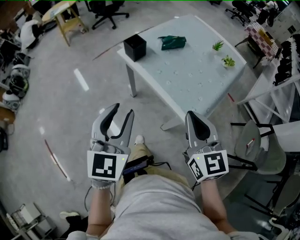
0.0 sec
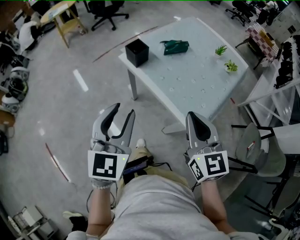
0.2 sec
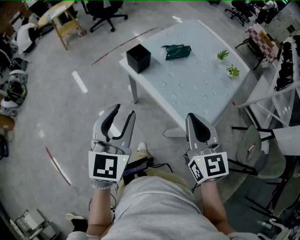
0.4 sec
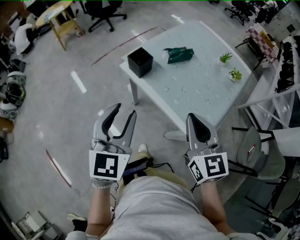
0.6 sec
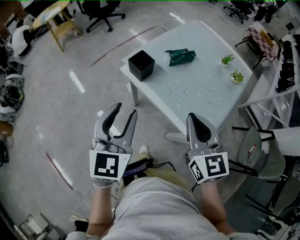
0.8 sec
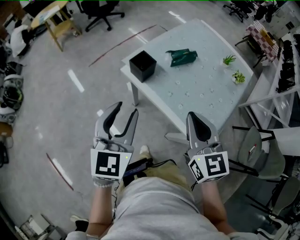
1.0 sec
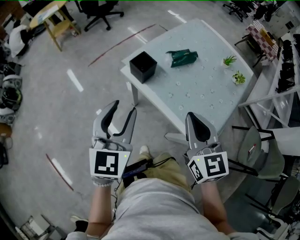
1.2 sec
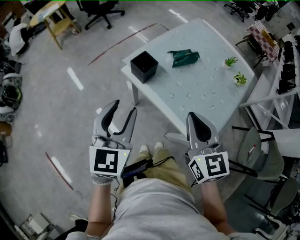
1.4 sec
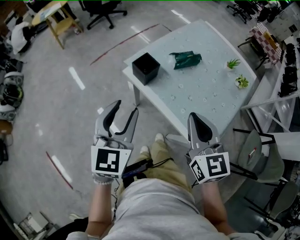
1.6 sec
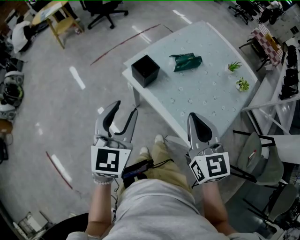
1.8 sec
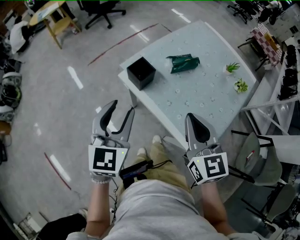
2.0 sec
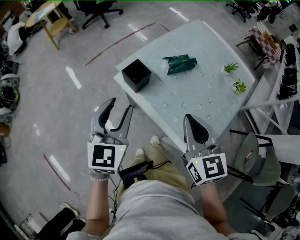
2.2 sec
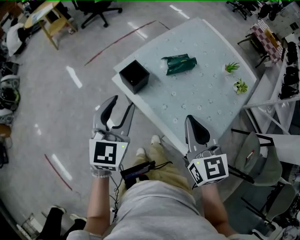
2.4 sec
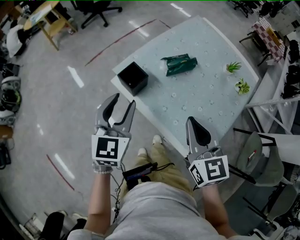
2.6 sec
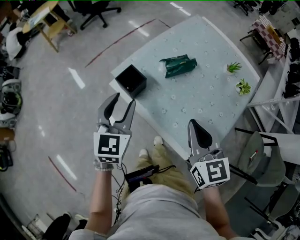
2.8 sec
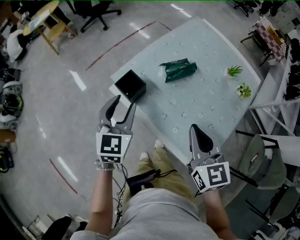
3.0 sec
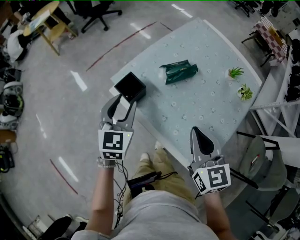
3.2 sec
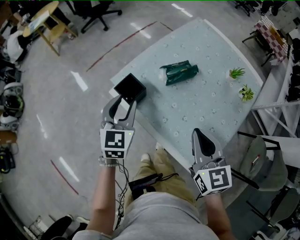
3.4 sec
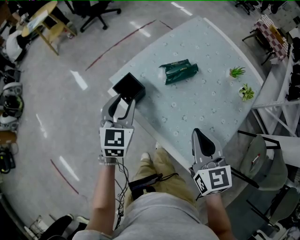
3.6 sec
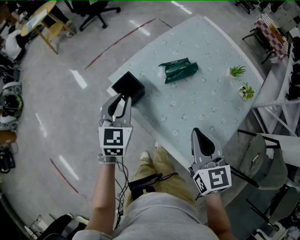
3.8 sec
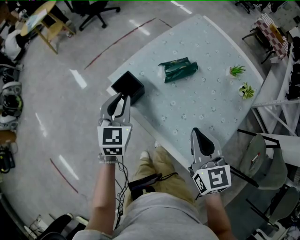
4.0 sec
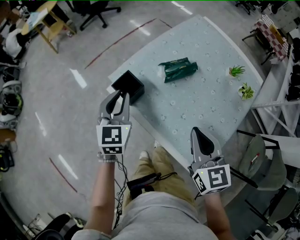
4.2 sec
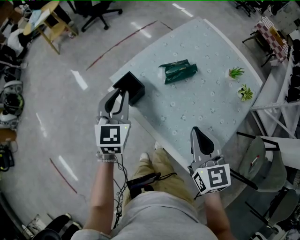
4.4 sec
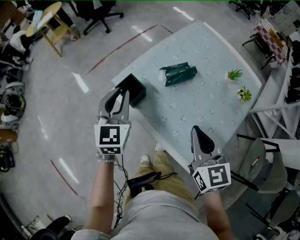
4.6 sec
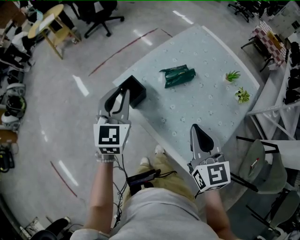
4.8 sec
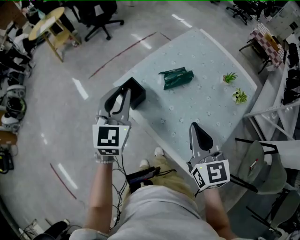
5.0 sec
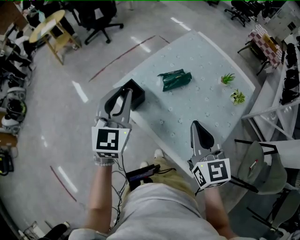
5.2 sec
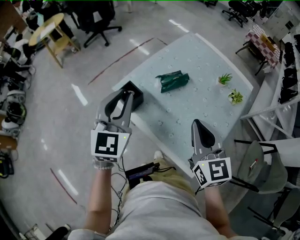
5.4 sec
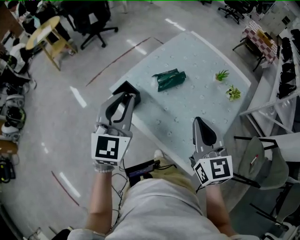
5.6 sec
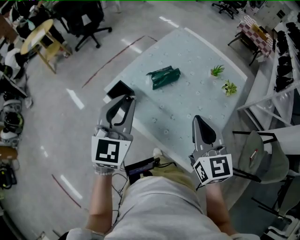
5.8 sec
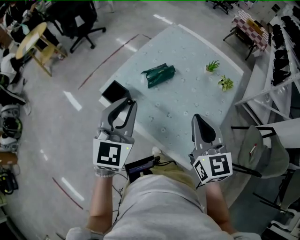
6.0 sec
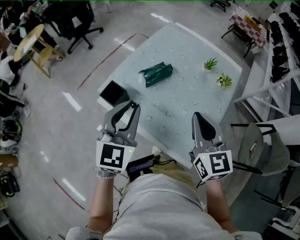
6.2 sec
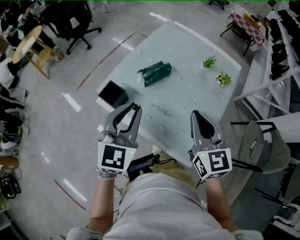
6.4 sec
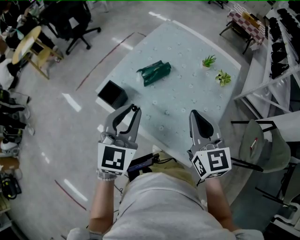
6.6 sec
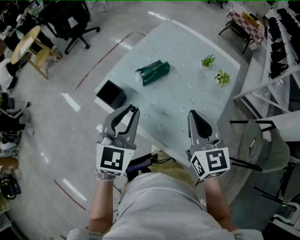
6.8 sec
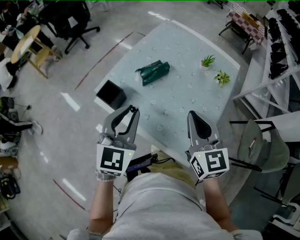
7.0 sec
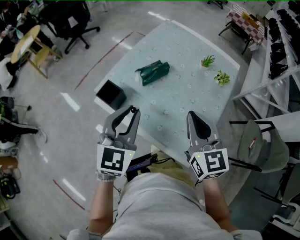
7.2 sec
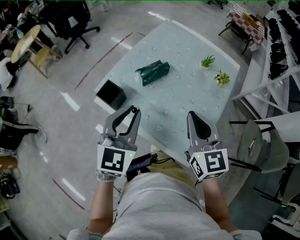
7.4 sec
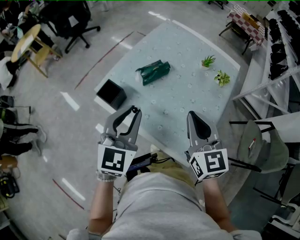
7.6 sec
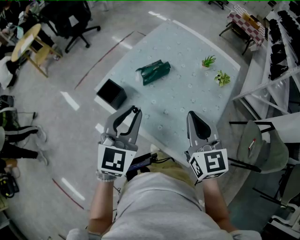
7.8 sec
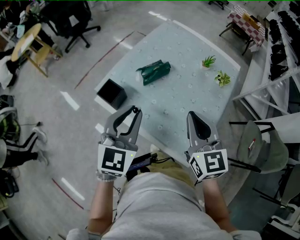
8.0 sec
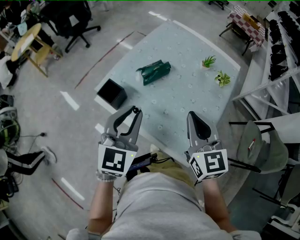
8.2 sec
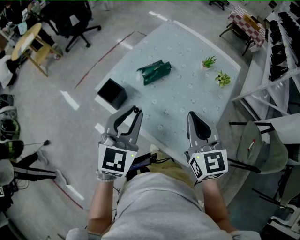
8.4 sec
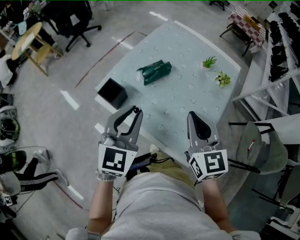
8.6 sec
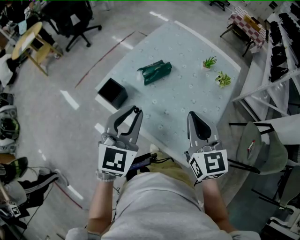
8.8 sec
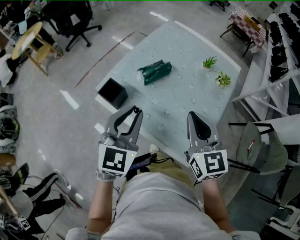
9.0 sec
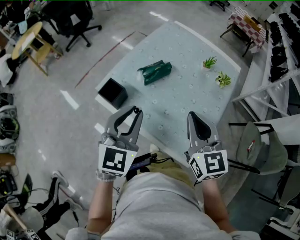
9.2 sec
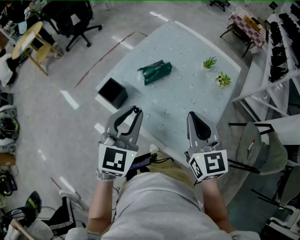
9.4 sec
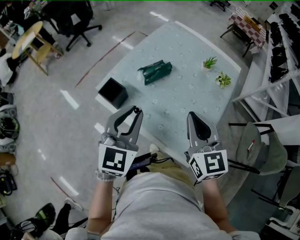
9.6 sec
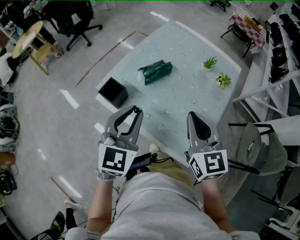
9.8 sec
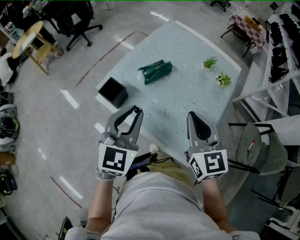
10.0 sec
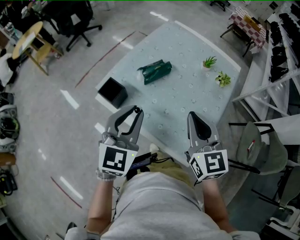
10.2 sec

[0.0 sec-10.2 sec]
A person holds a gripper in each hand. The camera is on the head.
0.0 sec to 1.4 sec: The two grippers go some 20 cm forward and to the left.
1.4 sec to 3.0 sec: The right gripper goes approximately 10 cm forward and to the right; the left gripper moves forward and downward, some 15 cm.
3.0 sec to 4.4 sec: The left gripper closes.
4.4 sec to 5.8 sec: The left gripper goes some 15 cm upward, to the right and backward; the right gripper travels upward by approximately 5 cm.
5.8 sec to 7.2 sec: The left gripper travels to the right by some 5 cm.
7.2 sec to 10.2 sec: Both grippers stay about where they are.

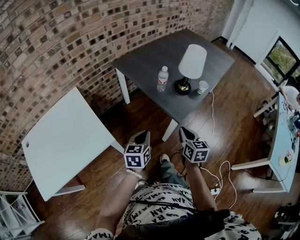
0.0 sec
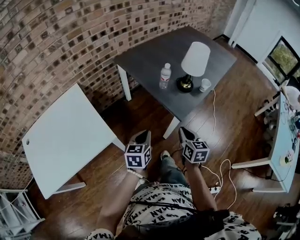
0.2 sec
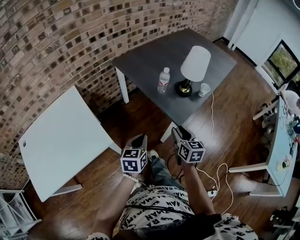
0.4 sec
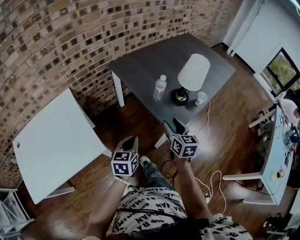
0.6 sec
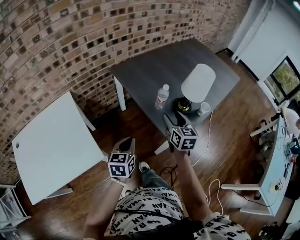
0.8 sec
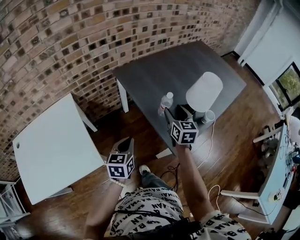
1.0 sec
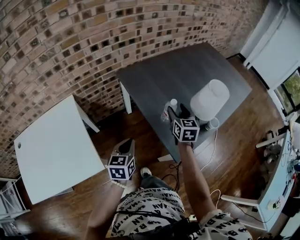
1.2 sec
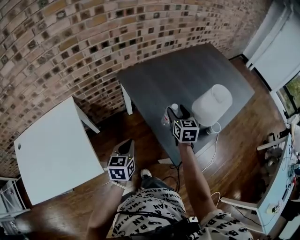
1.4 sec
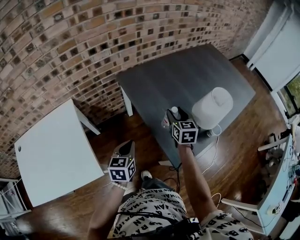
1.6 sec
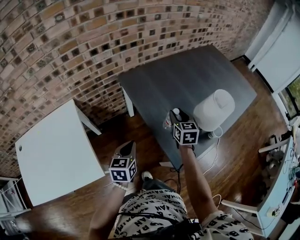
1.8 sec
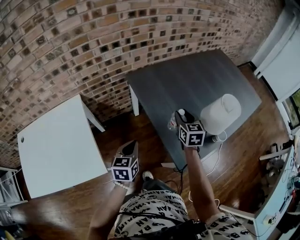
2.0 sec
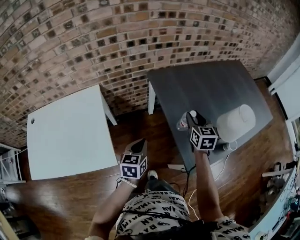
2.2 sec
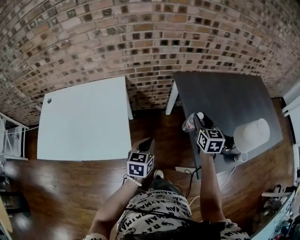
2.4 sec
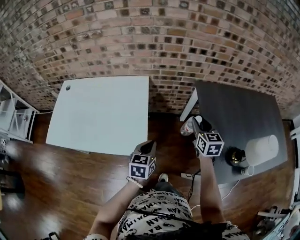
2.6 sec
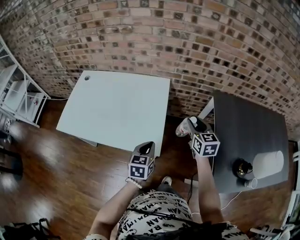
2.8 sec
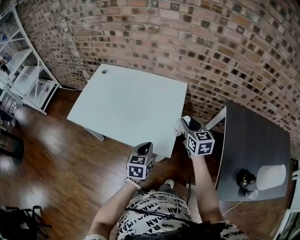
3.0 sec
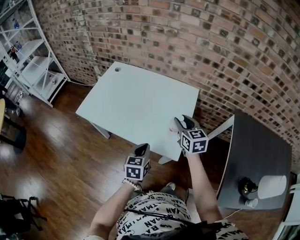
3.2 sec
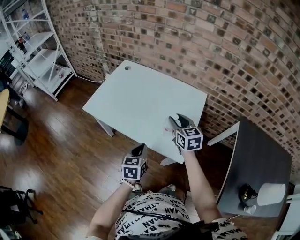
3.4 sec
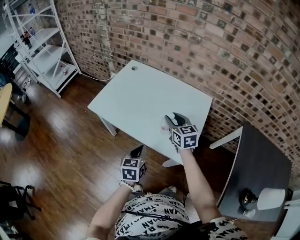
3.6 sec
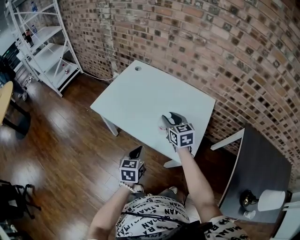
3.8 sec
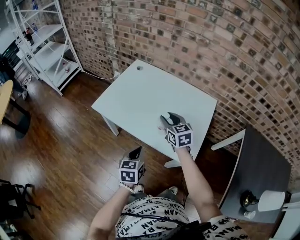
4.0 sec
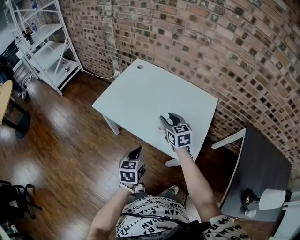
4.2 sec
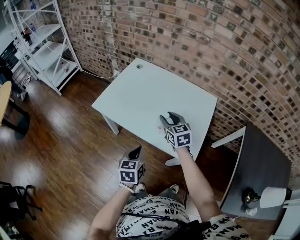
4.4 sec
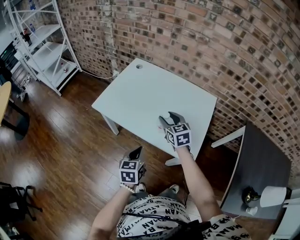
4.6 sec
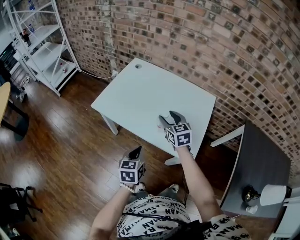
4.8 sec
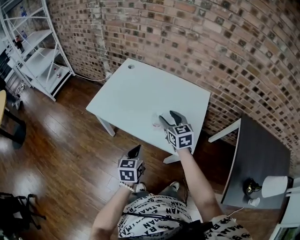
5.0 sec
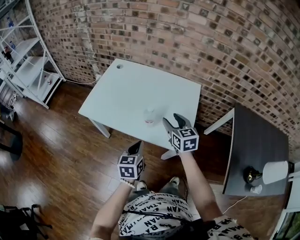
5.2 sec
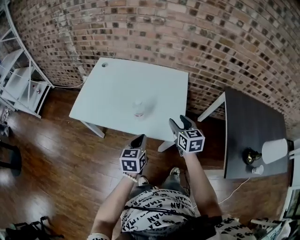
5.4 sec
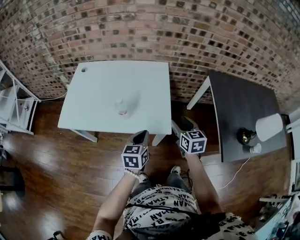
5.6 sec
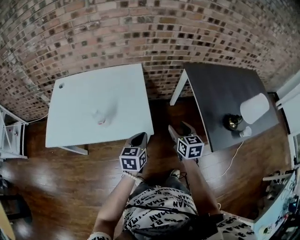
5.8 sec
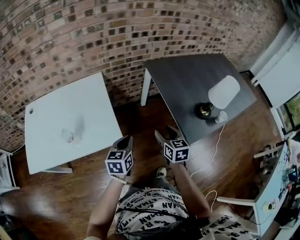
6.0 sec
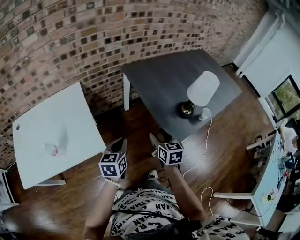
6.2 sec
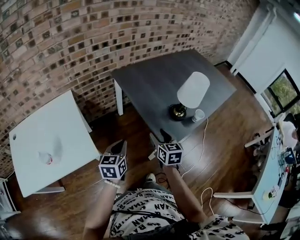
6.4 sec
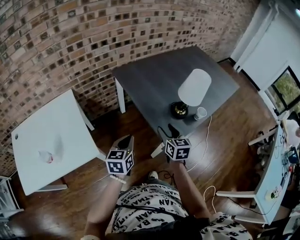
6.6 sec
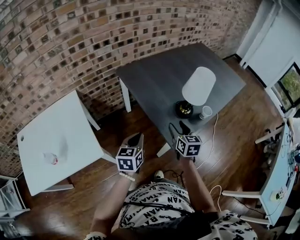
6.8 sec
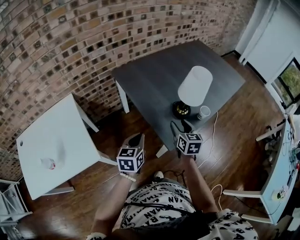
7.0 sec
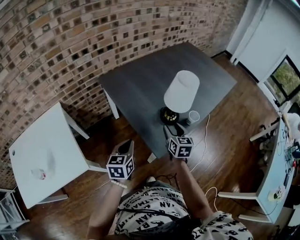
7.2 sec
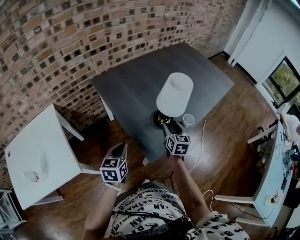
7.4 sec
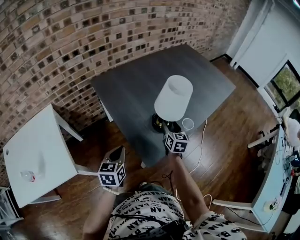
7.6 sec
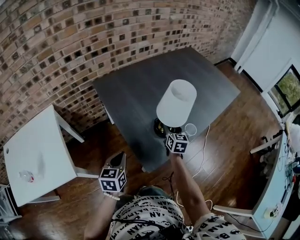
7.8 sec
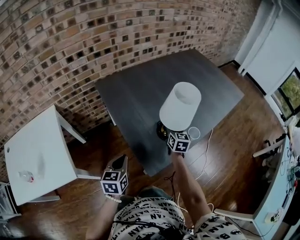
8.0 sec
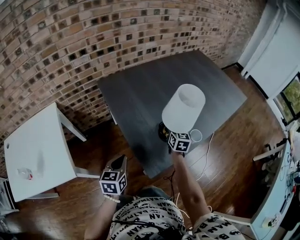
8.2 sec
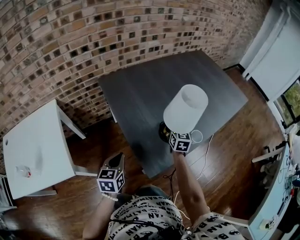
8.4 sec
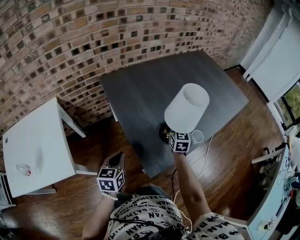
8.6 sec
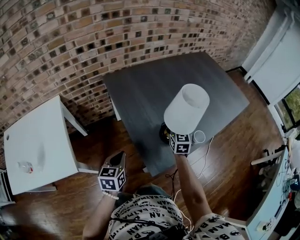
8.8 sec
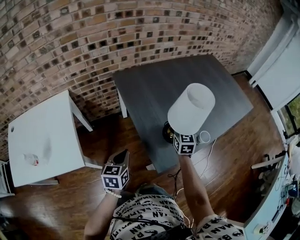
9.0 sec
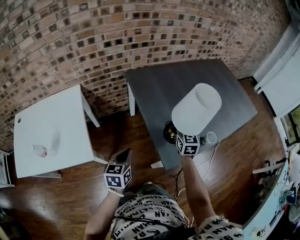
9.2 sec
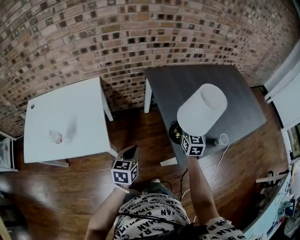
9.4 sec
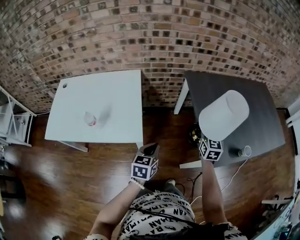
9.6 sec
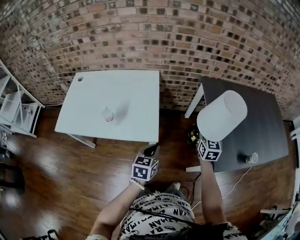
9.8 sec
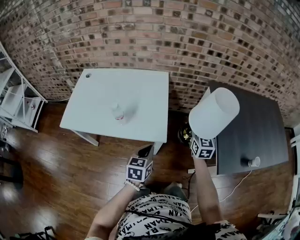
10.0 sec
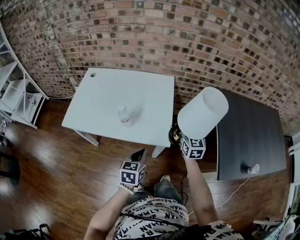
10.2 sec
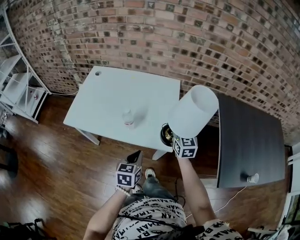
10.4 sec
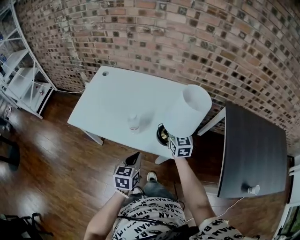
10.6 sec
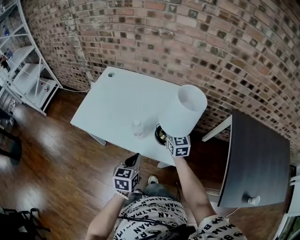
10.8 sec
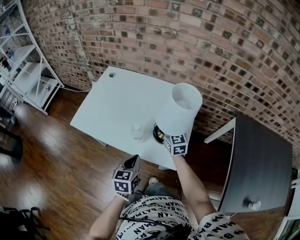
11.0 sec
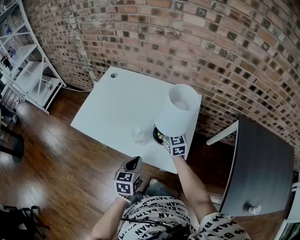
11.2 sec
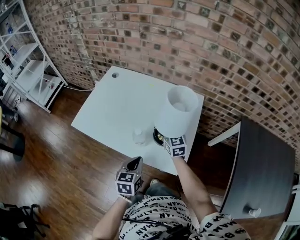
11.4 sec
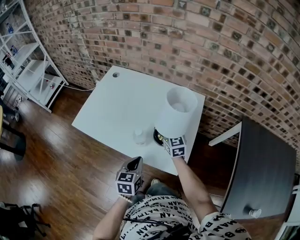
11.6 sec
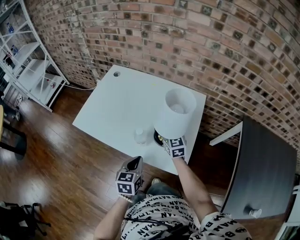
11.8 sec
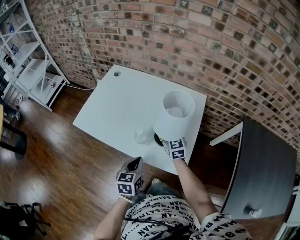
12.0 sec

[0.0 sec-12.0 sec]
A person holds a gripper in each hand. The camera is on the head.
0.0 sec to 1.6 sec: The left gripper goes roughly 20 cm forward. The right gripper shifts some 35 cm forward, and opens up.
1.6 sec to 3.0 sec: The left gripper ends up about 35 cm from where it was, and changes its angle by about 40 degrees. Meanwhile the right gripper changes place by some 50 cm, and changes its angle by approximately 50 degrees.
3.0 sec to 4.4 sec: Both grippers travel together to the left, approximately 25 cm. The right gripper swivels approximately 20 degrees.
4.4 sec to 6.0 sec: The right gripper moves about 50 cm, and turns by approximately 60 degrees, while the left gripper changes place by about 35 cm, and turns by some 50 degrees.
6.0 sec to 7.6 sec: Both grippers move to the right and forward, roughly 35 cm. The right gripper swivels approximately 30 degrees.
7.6 sec to 9.0 sec: The right gripper travels to the left by roughly 10 cm, turns by approximately 20 degrees, and closes up. Meanwhile the left gripper shifts by approximately 5 cm.
9.0 sec to 10.4 sec: Both grippers are carried about 50 cm. The left gripper rotates some 30 degrees, while the right gripper changes its angle by roughly 40 degrees.
10.4 sec to 12.0 sec: The left gripper is displaced forward by roughly 10 cm. Meanwhile the right gripper goes some 20 cm forward, to the left and downward, and rotates about 20 degrees.

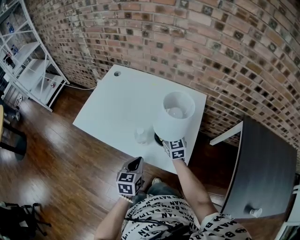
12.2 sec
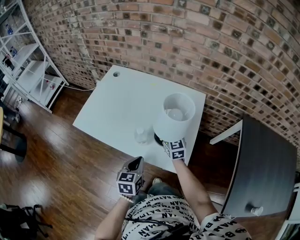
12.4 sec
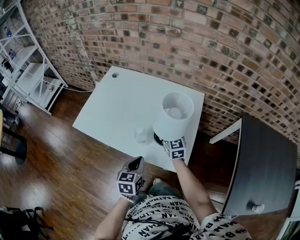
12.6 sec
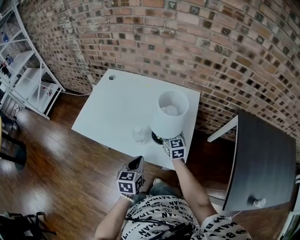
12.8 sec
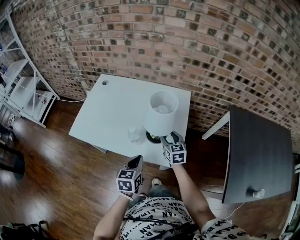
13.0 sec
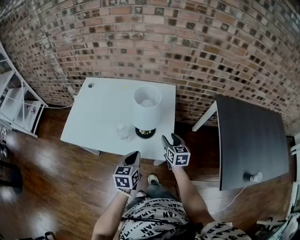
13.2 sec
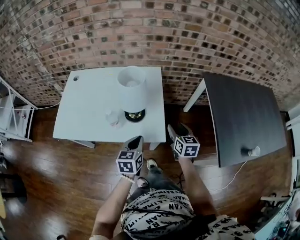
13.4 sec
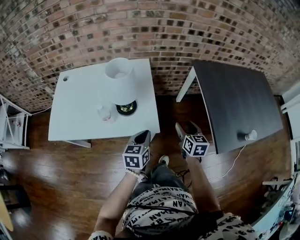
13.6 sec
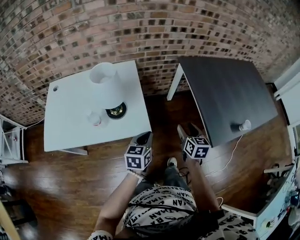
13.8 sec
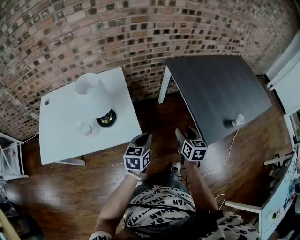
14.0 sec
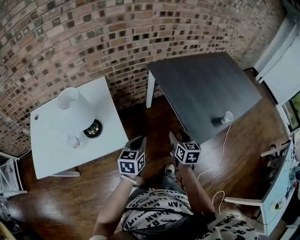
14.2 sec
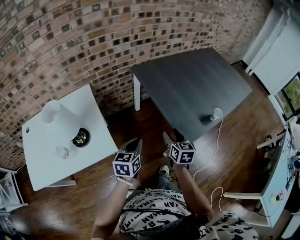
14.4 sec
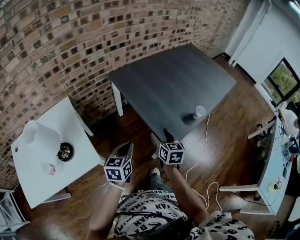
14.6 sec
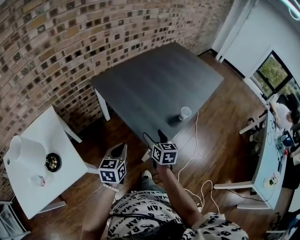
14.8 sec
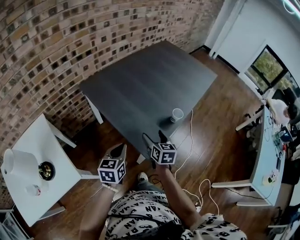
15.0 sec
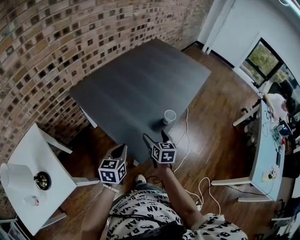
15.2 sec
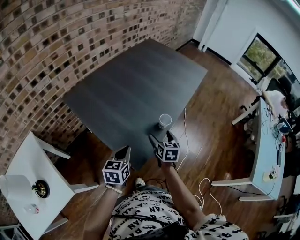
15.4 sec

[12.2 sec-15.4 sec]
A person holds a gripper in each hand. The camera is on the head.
12.2 sec to 13.8 sec: The left gripper moves approximately 25 cm, and changes its angle by roughly 40 degrees; the right gripper moves some 40 cm, rotates about 50 degrees, and opens.
13.8 sec to 15.4 sec: The two grippers travel together, about 50 cm. The right gripper swivels roughly 40 degrees, and opens up, while the left gripper changes its angle by roughly 40 degrees.
